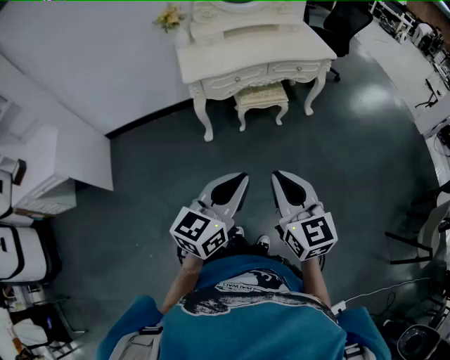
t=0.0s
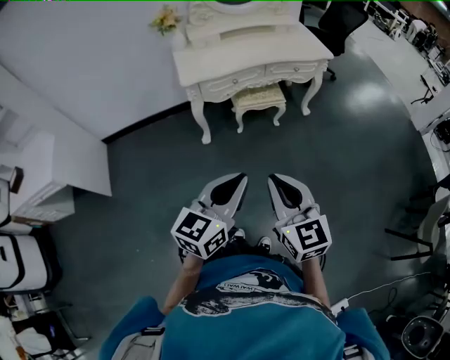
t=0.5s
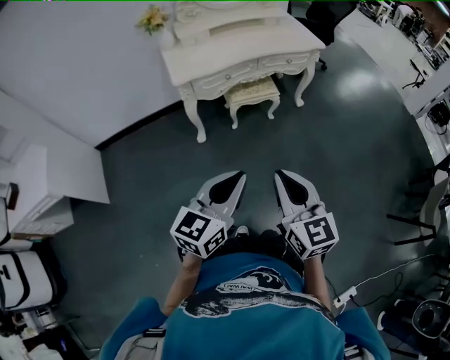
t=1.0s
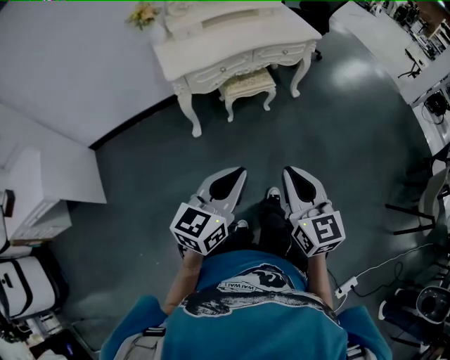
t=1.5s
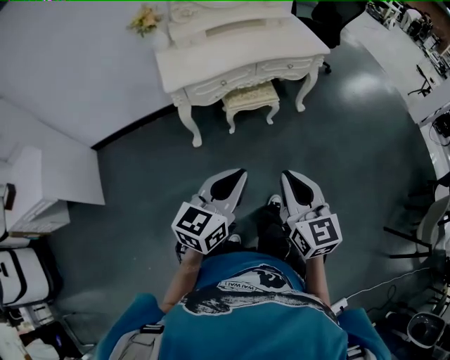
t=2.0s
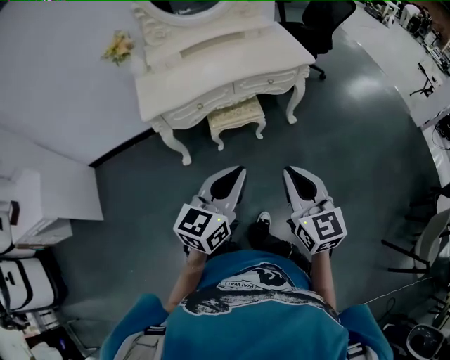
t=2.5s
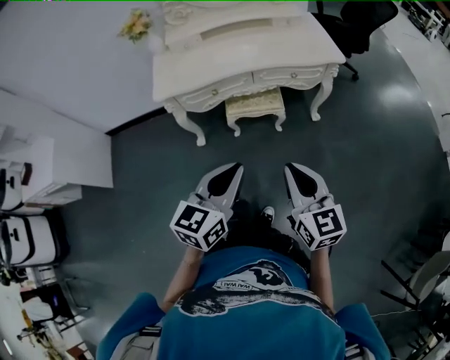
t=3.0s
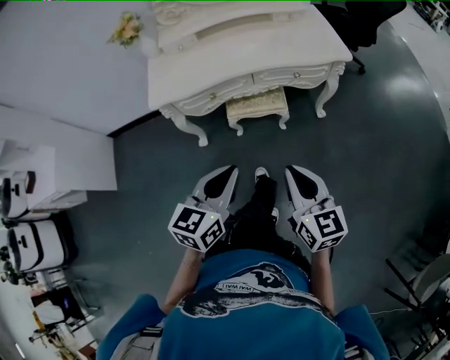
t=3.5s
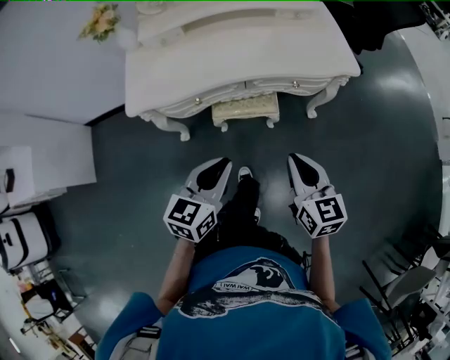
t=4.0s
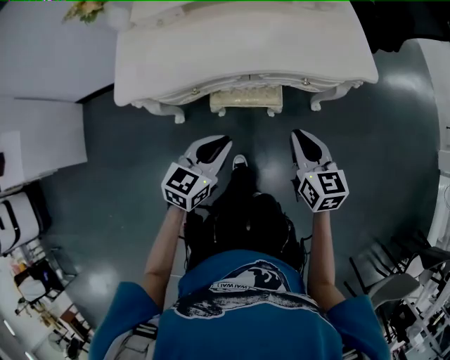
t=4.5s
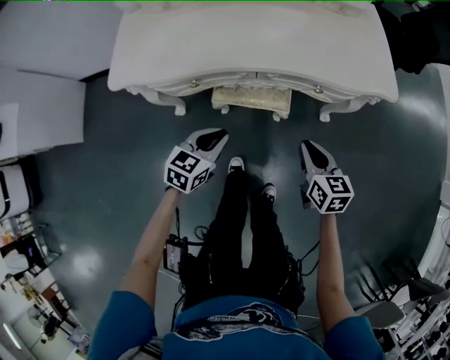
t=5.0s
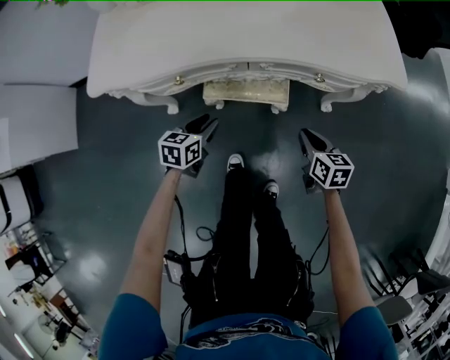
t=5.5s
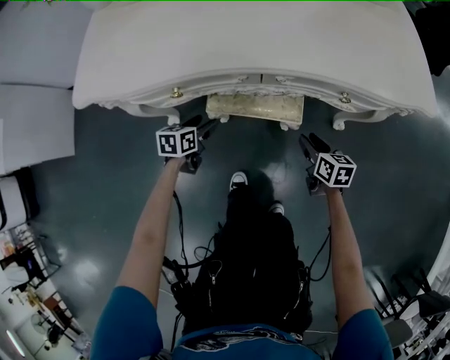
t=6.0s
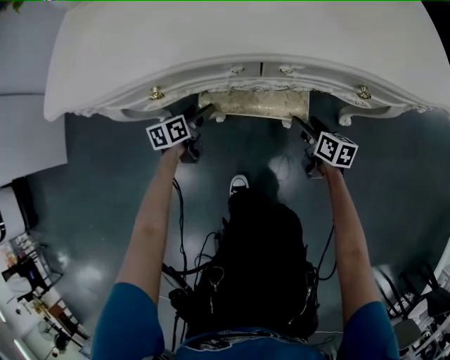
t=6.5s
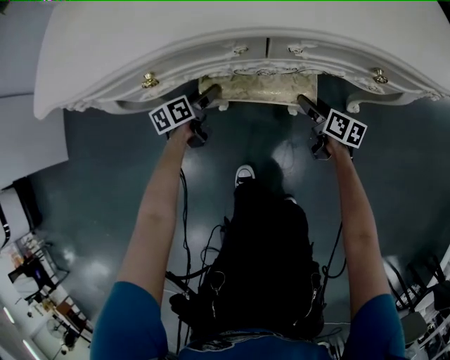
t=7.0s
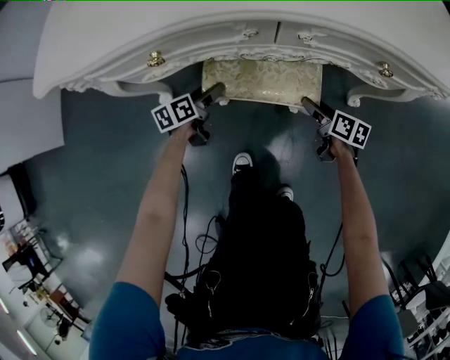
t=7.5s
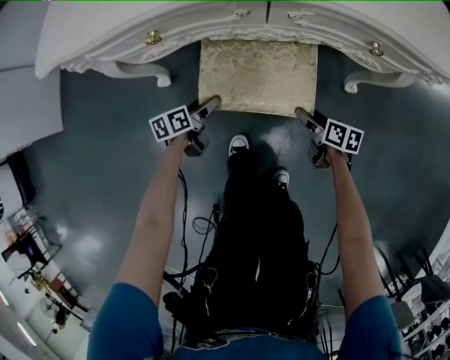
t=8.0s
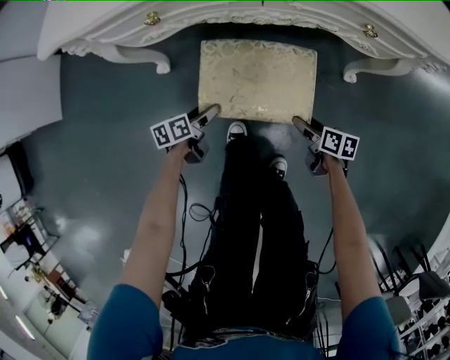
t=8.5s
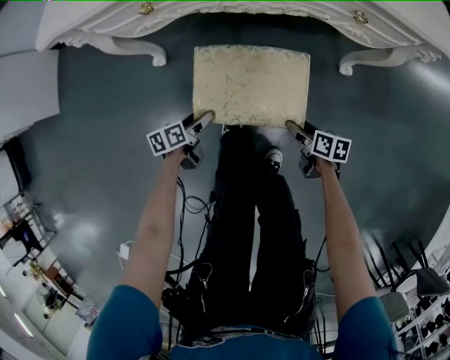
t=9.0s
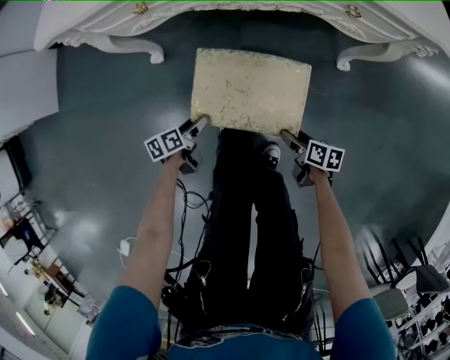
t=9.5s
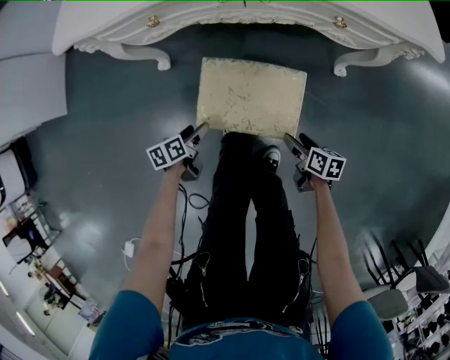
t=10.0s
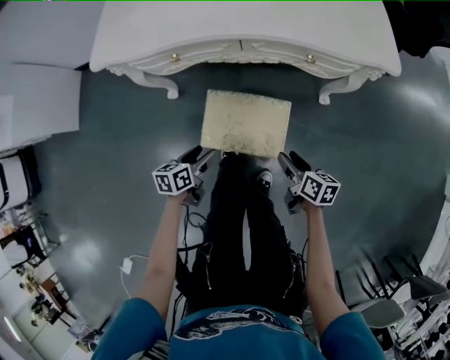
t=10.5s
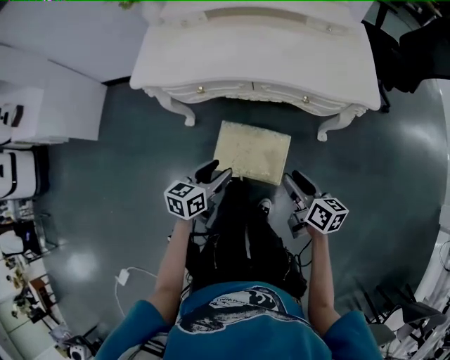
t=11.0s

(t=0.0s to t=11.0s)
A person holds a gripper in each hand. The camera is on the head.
t=0.0s - t=2.0s: Both grippers travel together forward, roughly 10 cm.
t=2.0s - t=3.5s: The grippers both shift forward and to the right by approximately 25 cm.
t=3.5s - t=5.5s: The two grippers go roughly 40 cm downward and forward. The left gripper swivels roughly 30 degrees; the right gripper changes its angle by roughly 30 degrees.
t=5.5s - t=7.5s: Both grippers move downward and forward, roughly 25 cm. The left gripper rotates about 30 degrees, and opens its fingers; the right gripper turns by roughly 20 degrees, and opens up.
t=7.5s - t=9.0s: The grippers both shift backward by roughly 25 cm.
t=9.0s - t=11.0s: The grippers both shift upward by approximately 40 cm. The left gripper rotates some 40 degrees, and closes up. The right gripper changes its angle by about 30 degrees, and closes its fingers.

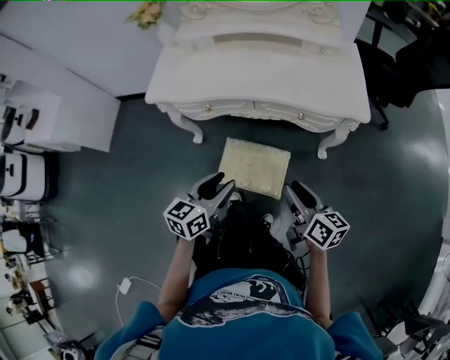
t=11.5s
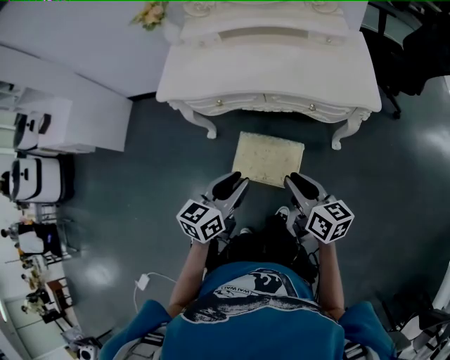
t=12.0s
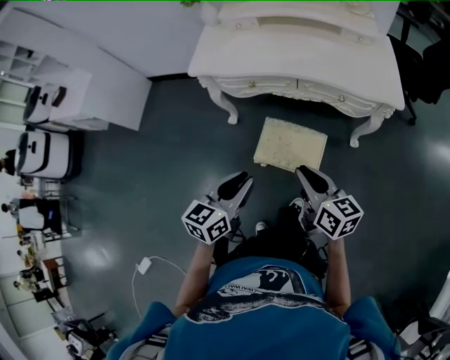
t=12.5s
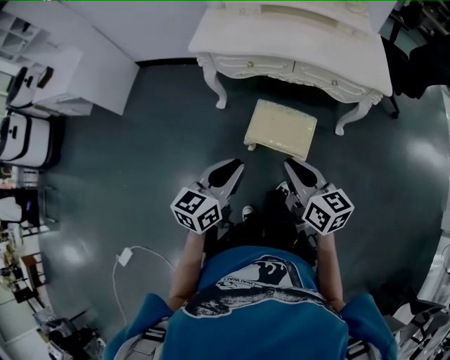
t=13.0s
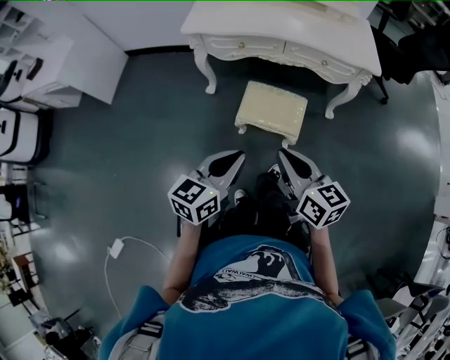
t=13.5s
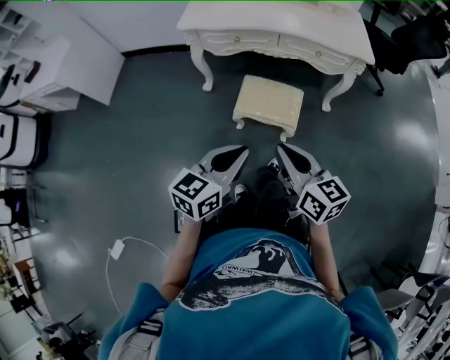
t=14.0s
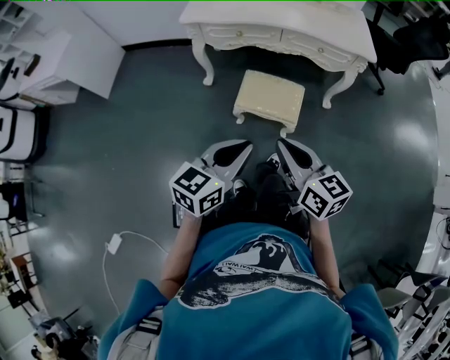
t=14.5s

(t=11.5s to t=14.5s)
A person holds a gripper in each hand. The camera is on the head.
t=11.5s - t=13.0s: The right gripper heads to the left and backward, covering approximately 25 cm. Meanwhile the left gripper goes approximately 20 cm backward and to the left.
t=13.0s - t=14.5s: Both grippers travel together backward, about 10 cm.

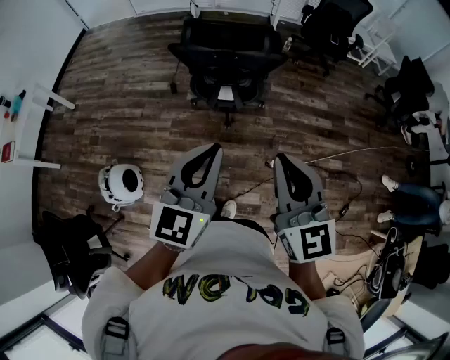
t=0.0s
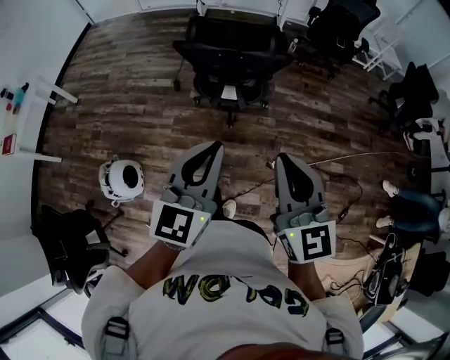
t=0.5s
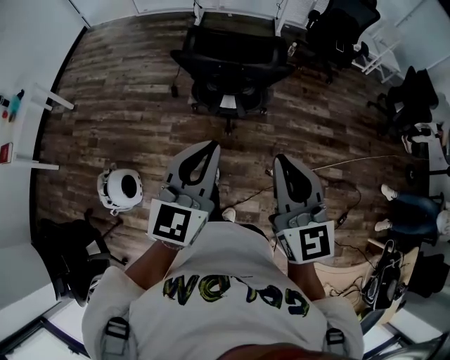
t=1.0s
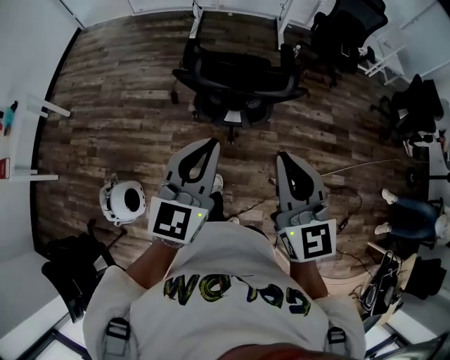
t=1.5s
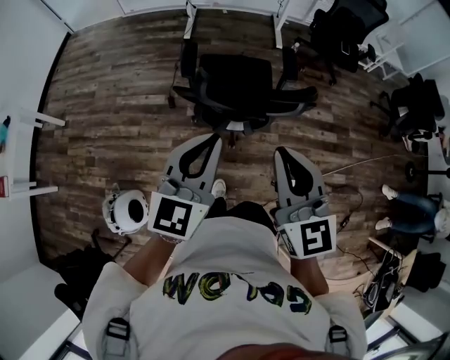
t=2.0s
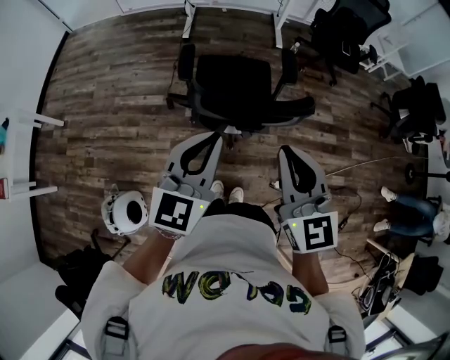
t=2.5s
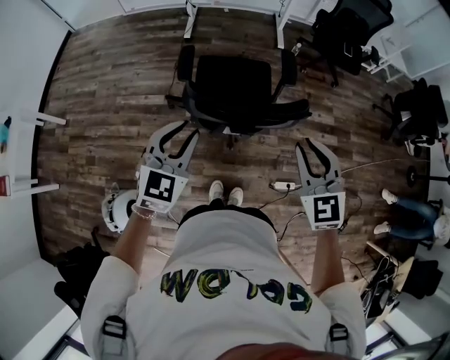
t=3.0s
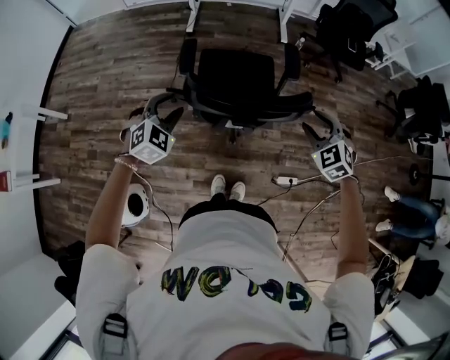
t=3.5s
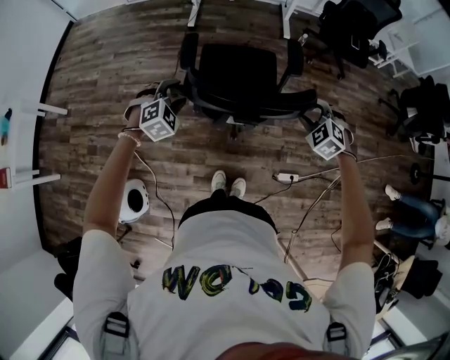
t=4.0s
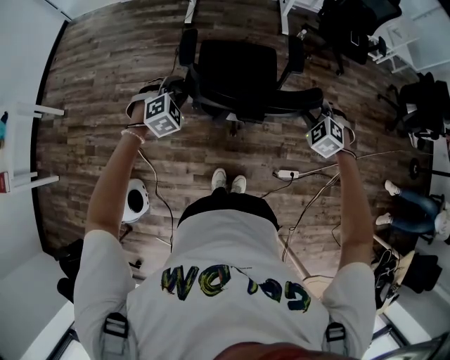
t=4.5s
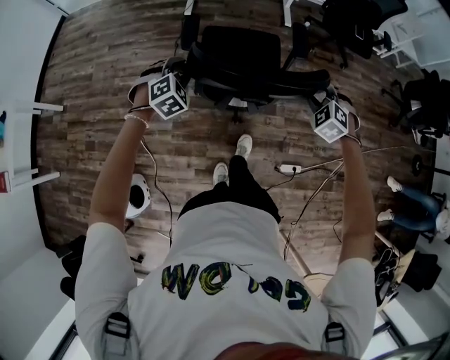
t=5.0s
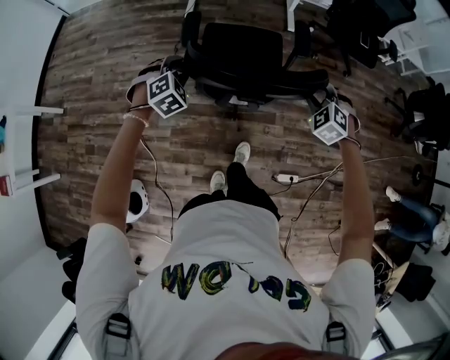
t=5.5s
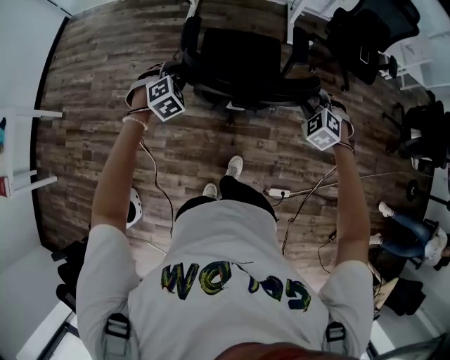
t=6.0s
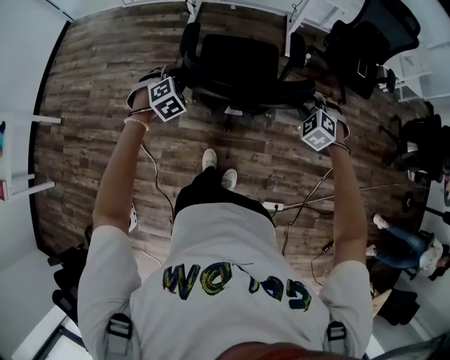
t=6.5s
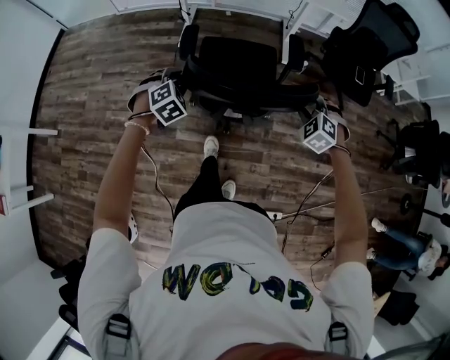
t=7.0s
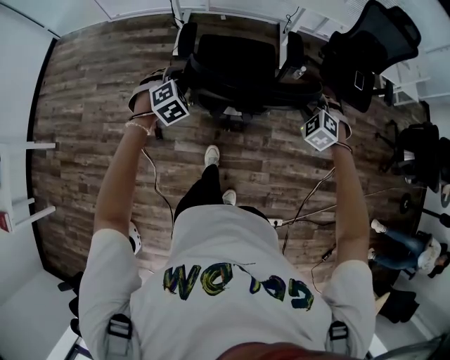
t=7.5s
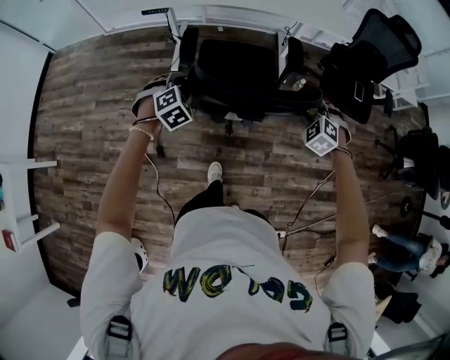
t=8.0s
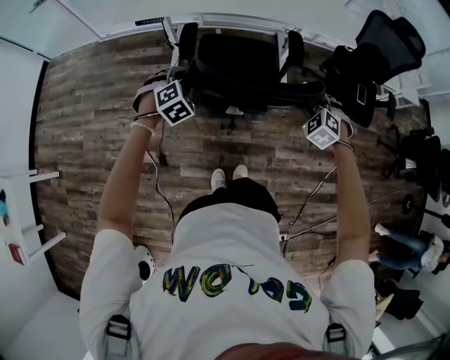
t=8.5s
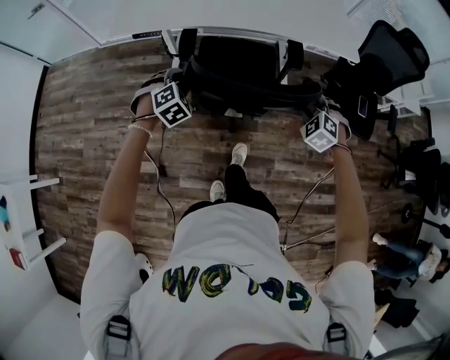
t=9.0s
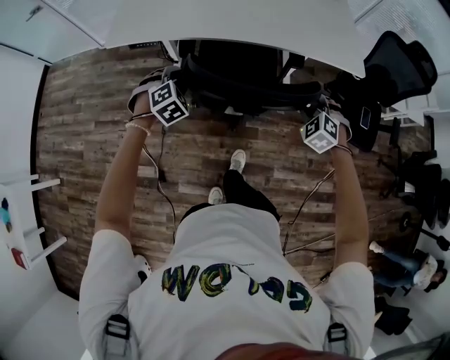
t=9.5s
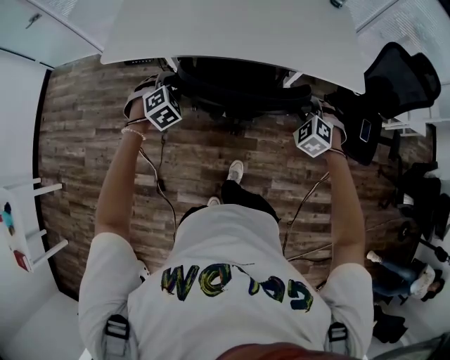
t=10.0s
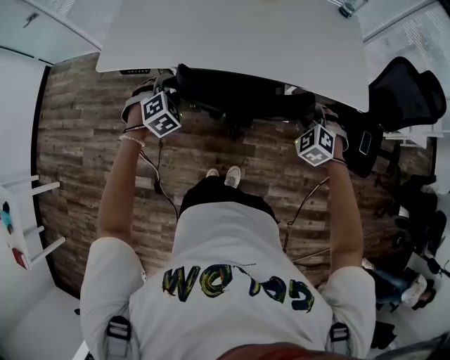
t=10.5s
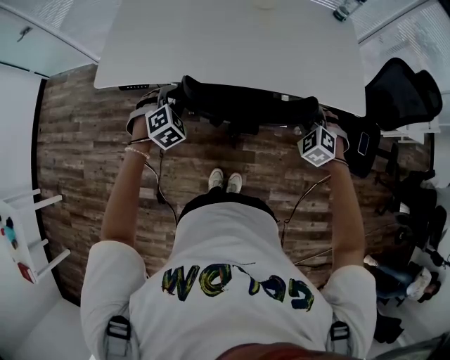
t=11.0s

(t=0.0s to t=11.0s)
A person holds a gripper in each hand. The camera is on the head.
t=0.0s - t=2.0s: The two grippers go about 30 cm forward.
t=2.0s - t=3.5s: The left gripper goes roughly 25 cm downward, forward and to the left, angles its fingers downward, by approximately 30 degrees, and opens its fingers; the right gripper shifts roughly 30 cm downward, to the right and forward, points its fingers about 30 degrees further downward, and opens up.
t=3.5s - t=5.5s: Both grippers move forward, some 20 cm.
t=5.5s - t=7.5s: The grippers both shift forward by some 30 cm.
t=7.5s - t=9.0s: The grippers both shift forward by about 25 cm.
t=9.0s - t=11.0s: Both grippers travel together forward, about 25 cm.

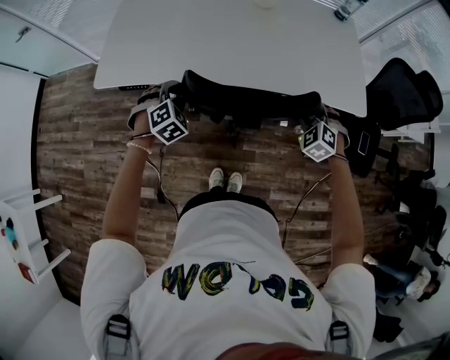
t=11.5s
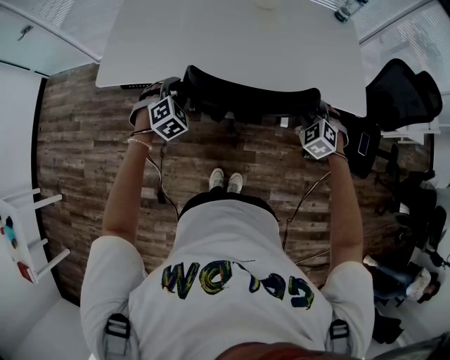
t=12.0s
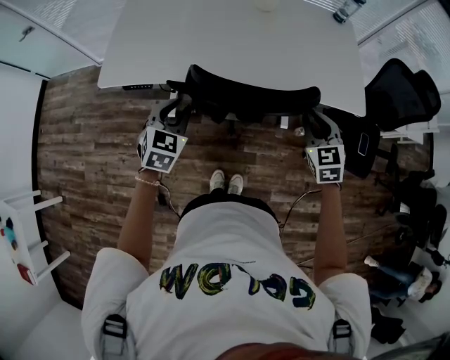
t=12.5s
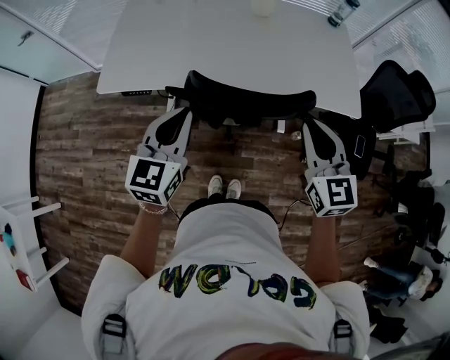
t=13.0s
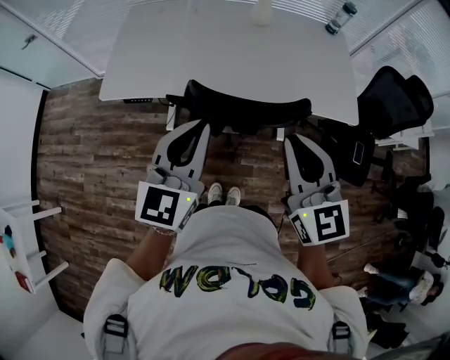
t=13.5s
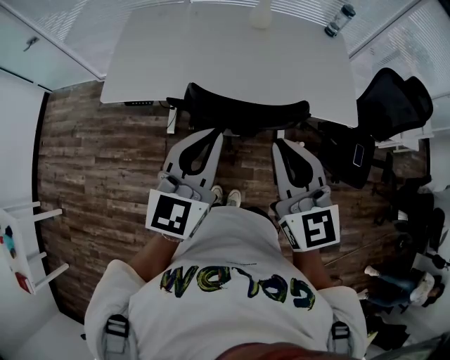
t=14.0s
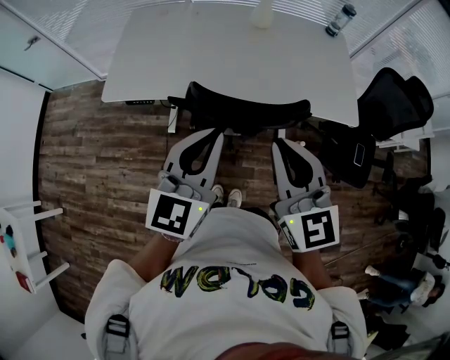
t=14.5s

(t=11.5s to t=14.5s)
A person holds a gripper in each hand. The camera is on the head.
t=11.5s - t=13.0s: Both grippers travel together upward and backward, about 25 cm. The left gripper tilts its fingers roughly 40 degrees upward, and closes its fingers, while the right gripper tilts its fingers some 30 degrees upward, and closes.
t=13.0s - t=14.5s: The left gripper travels upward and to the right by approximately 10 cm. Meanwhile the right gripper goes roughly 10 cm to the left and upward.
